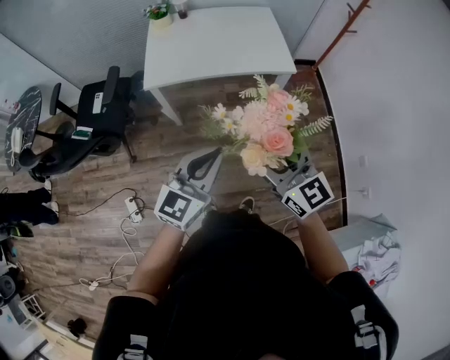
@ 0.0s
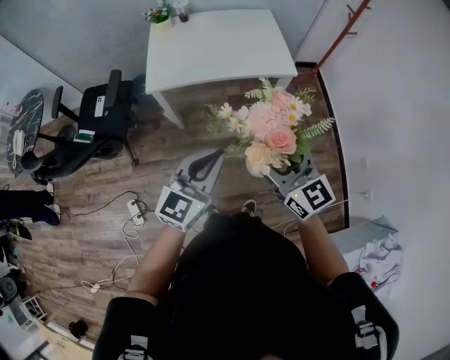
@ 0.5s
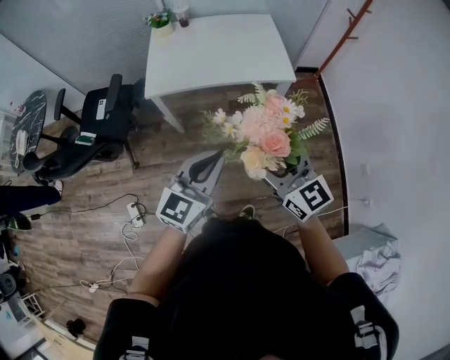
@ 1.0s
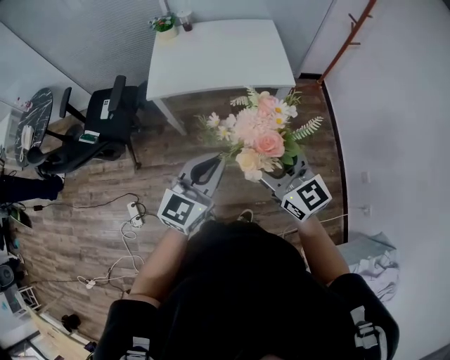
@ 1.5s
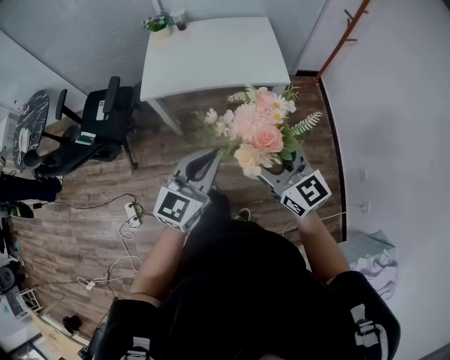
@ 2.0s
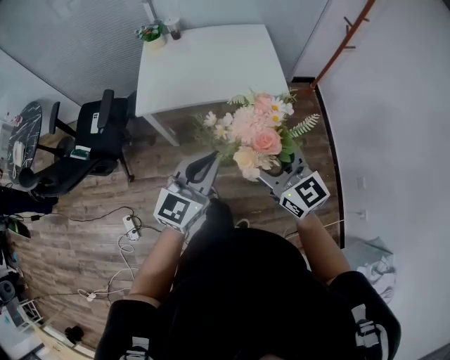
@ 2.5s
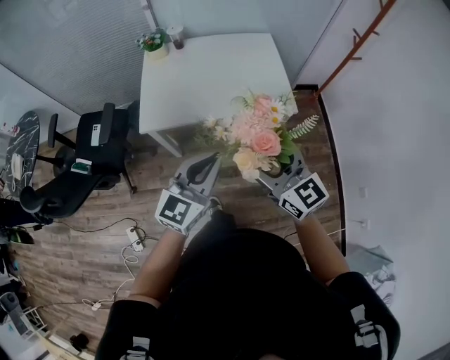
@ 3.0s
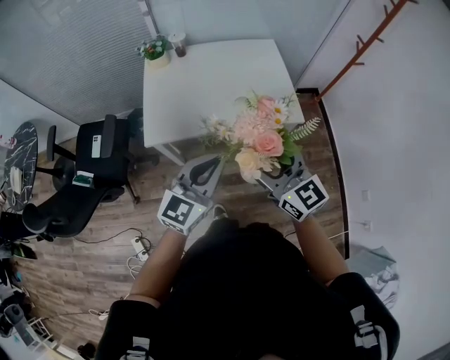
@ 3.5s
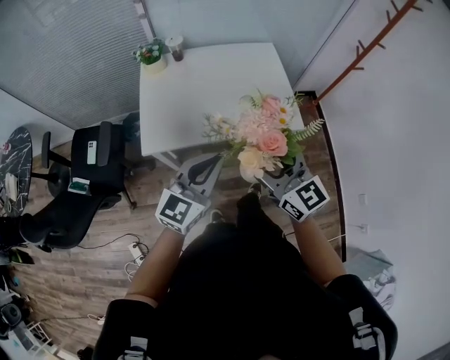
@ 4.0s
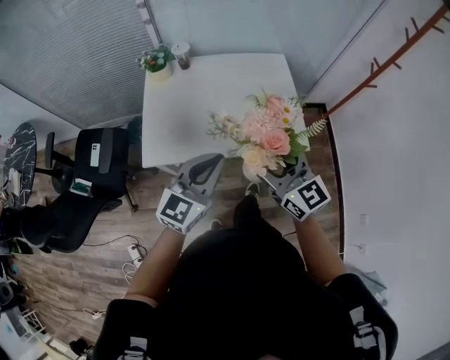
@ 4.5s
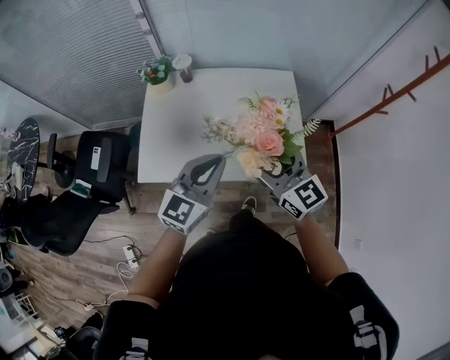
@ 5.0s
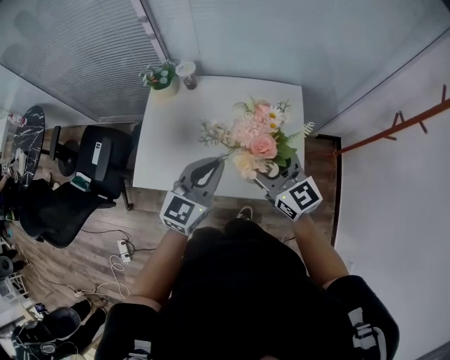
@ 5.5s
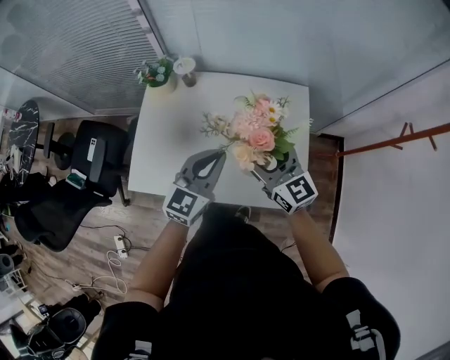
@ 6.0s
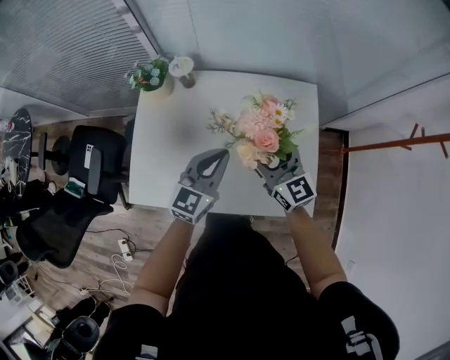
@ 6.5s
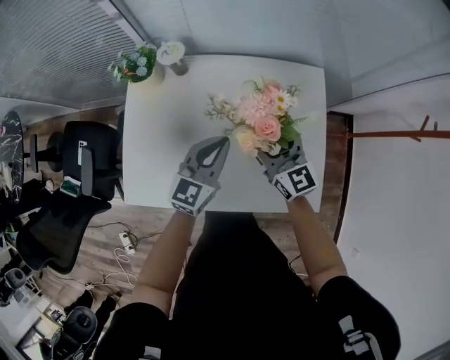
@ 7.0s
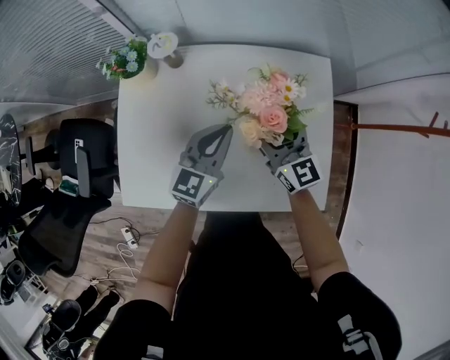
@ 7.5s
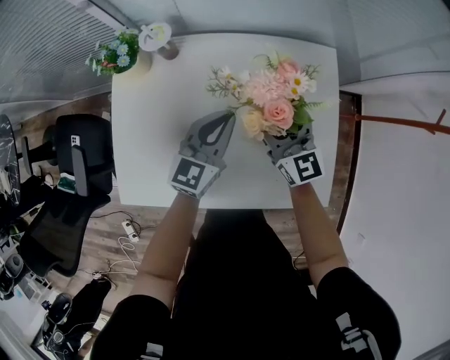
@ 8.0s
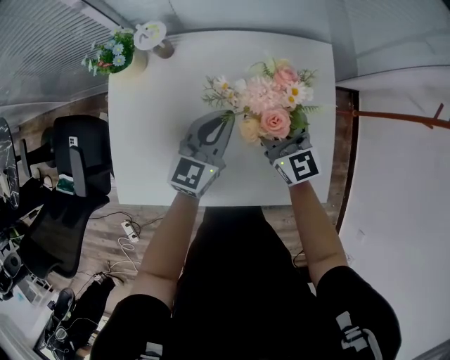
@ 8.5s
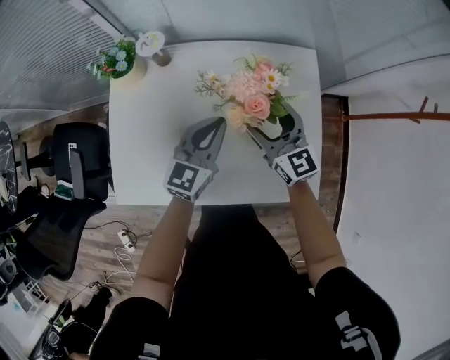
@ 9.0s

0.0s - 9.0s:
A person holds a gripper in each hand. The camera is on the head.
0.0s - 2.0s: Both grippers travel together to the right, roughly 5 cm.
2.0s - 4.5s: Both grippers travel together forward, approximately 35 cm.
4.5s - 7.0s: The grippers both shift forward and downward by approximately 40 cm.

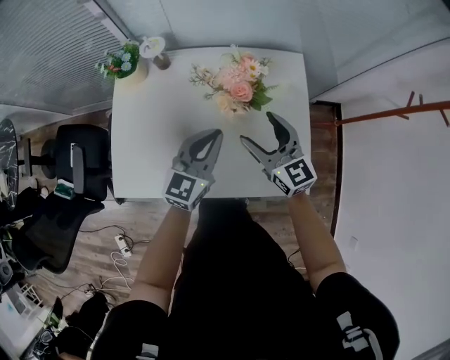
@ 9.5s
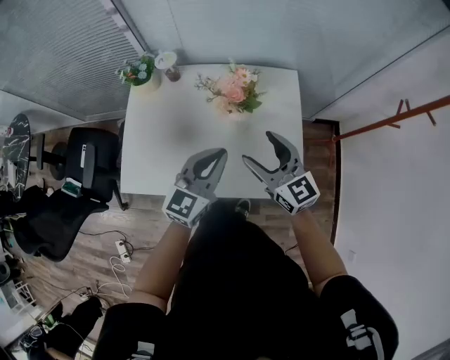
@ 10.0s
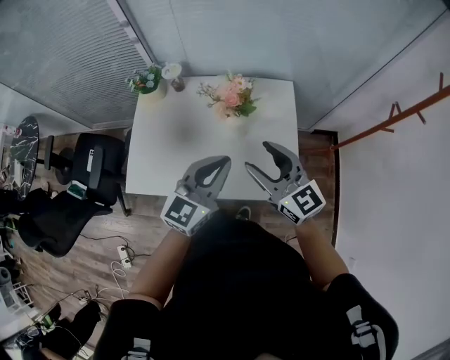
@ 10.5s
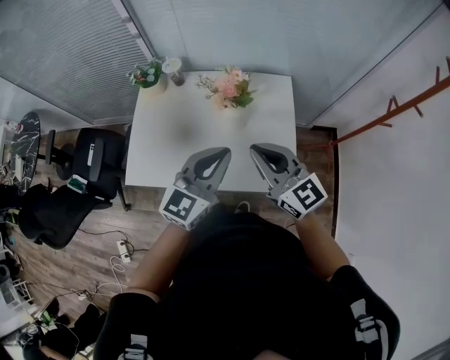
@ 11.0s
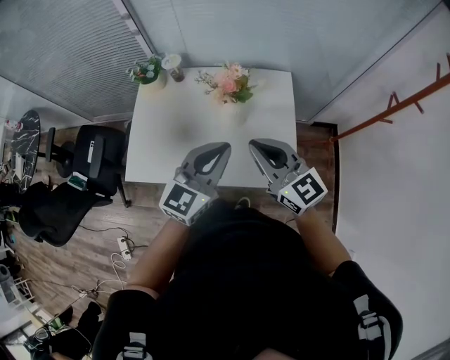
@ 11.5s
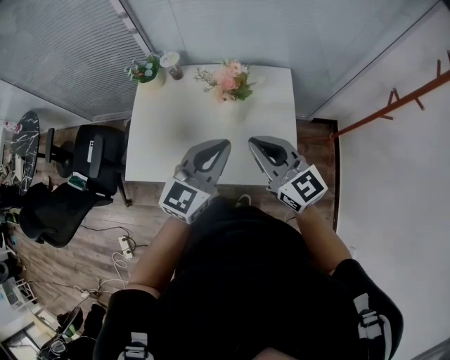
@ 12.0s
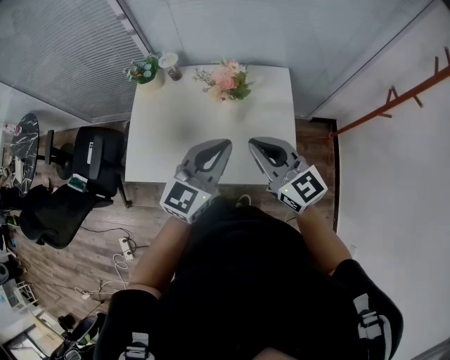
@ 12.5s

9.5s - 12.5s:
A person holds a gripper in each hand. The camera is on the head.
9.5s - 11.0s: Both grippers travel together upward and backward, roughly 20 cm. The right gripper closes up.
11.0s - 12.5s: Both grippers stay about where they are.

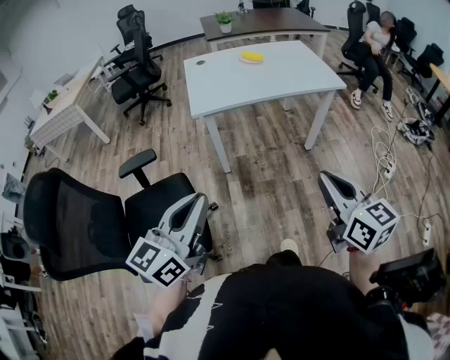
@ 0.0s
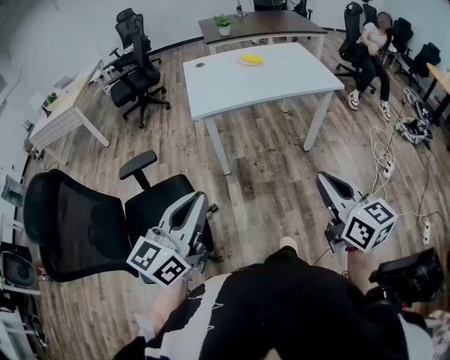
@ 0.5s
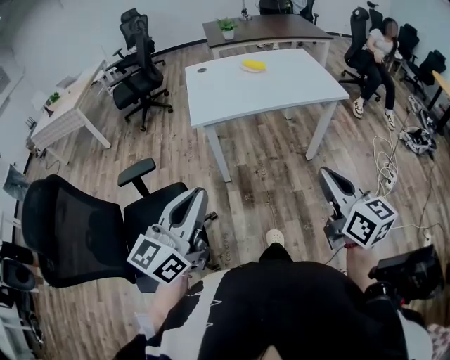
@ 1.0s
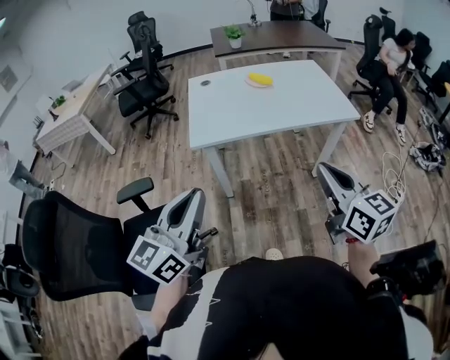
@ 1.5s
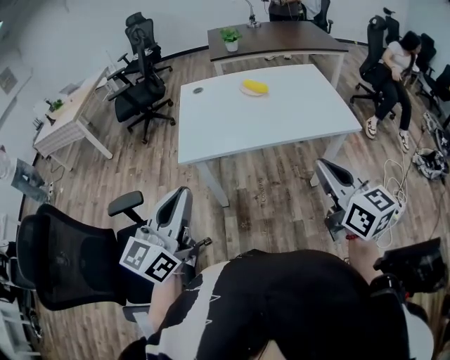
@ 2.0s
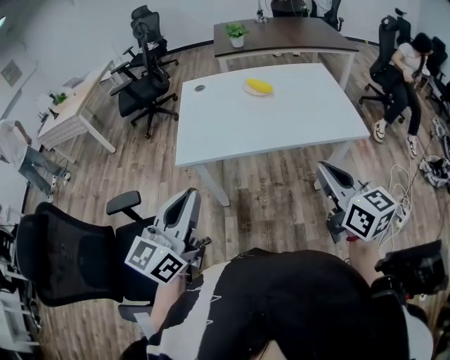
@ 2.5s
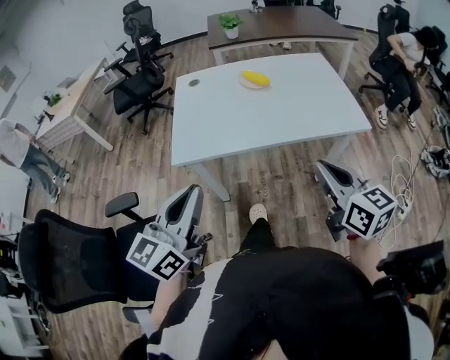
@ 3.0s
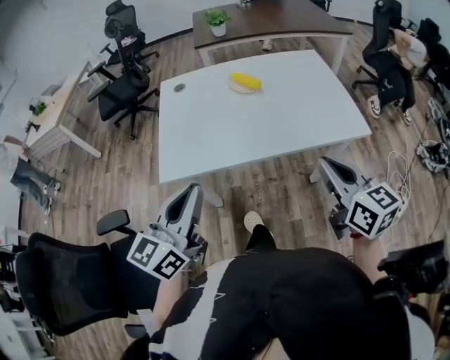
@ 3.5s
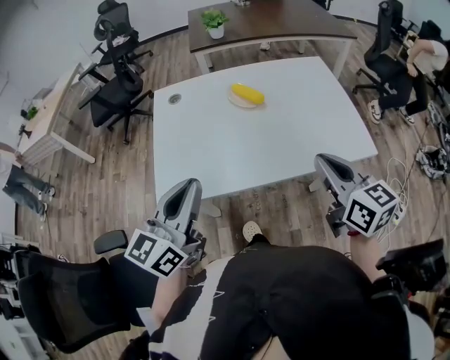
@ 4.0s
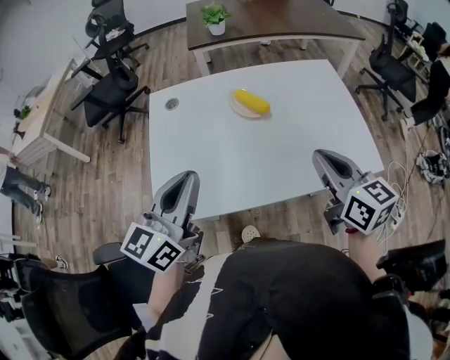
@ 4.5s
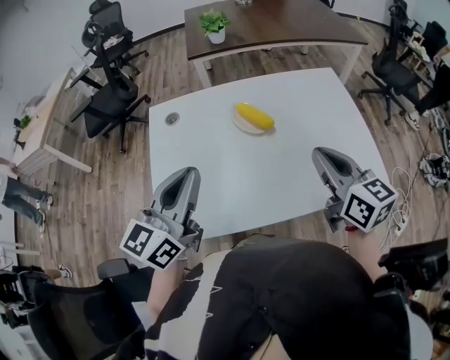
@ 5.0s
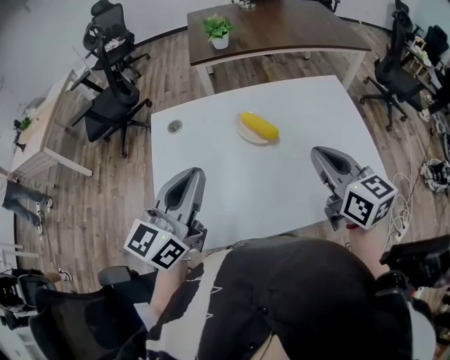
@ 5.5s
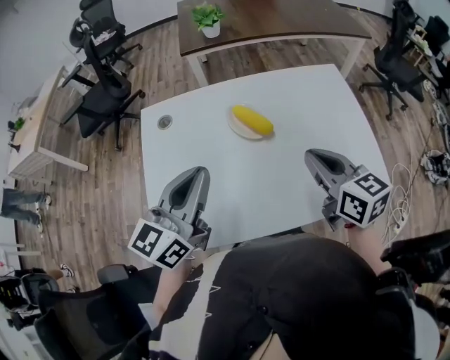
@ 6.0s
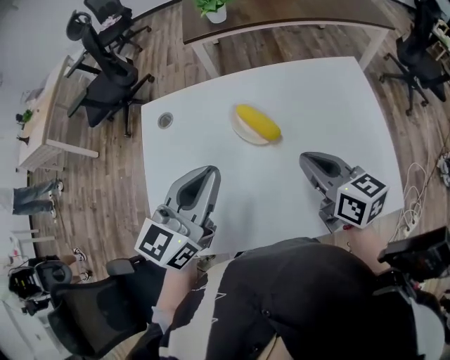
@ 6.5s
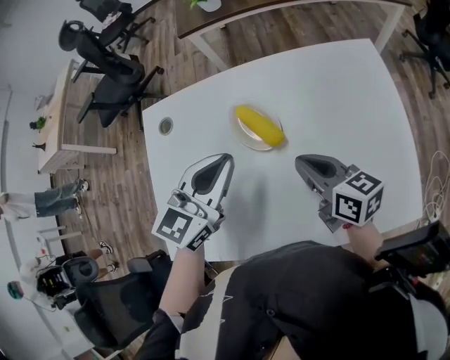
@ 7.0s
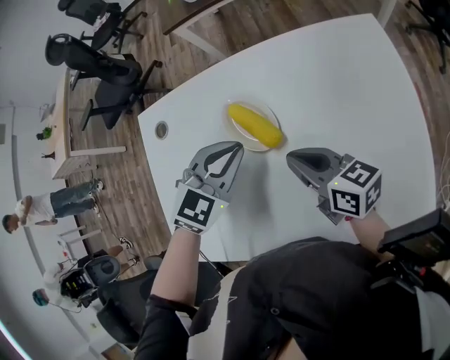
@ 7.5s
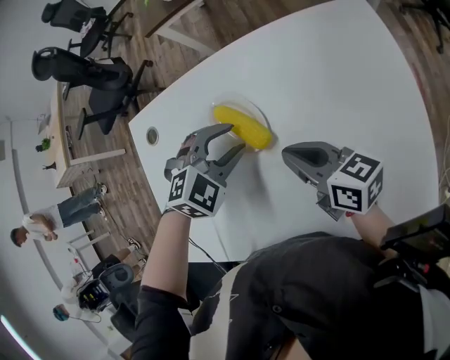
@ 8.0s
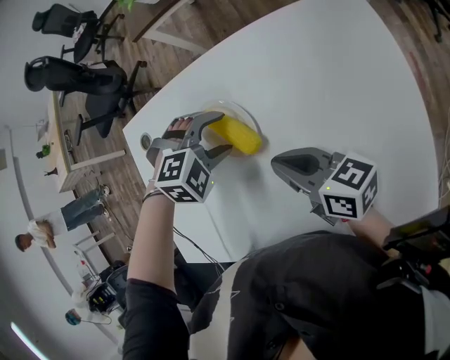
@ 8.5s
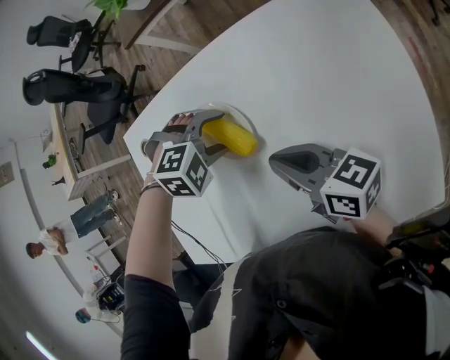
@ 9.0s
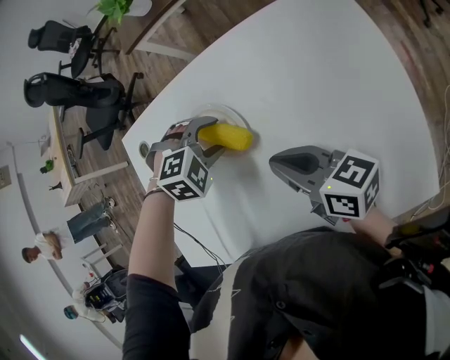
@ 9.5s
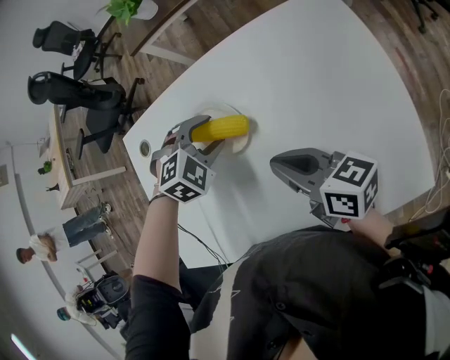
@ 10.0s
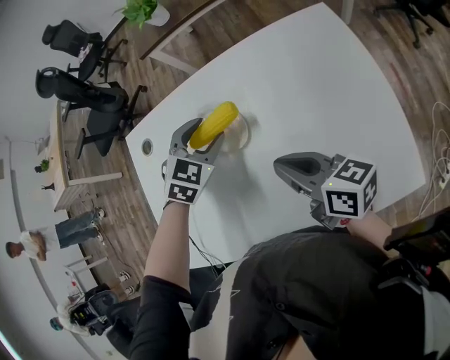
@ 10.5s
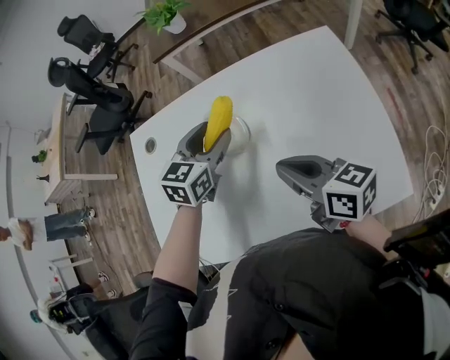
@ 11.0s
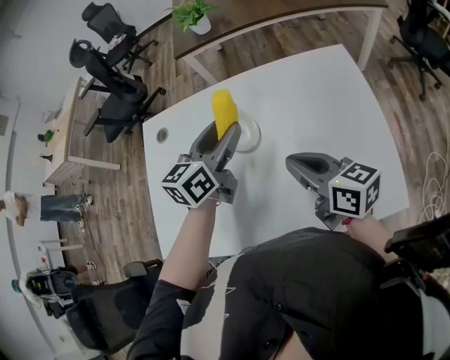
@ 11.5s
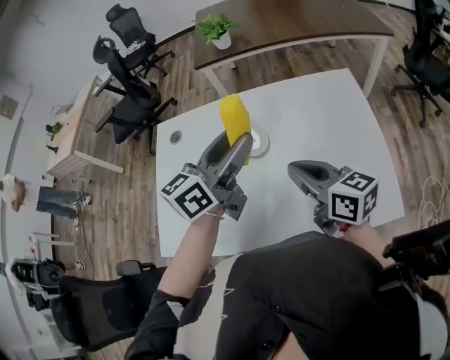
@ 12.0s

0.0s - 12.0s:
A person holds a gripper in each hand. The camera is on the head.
0.0s - 2.0s: Both grippers travel together forward, some 25 cm.
2.0s - 4.0s: Both grippers move forward, roughly 25 cm.
4.0s - 6.0s: The grippers both shift forward by approximately 20 cm.
6.0s - 8.0s: The right gripper is displaced downward and forward by approximately 20 cm, and changes its angle by roughly 30 degrees. Meanwhile the left gripper travels downward, forward and to the right by roughly 35 cm, tilts its fingers about 60 degrees downward, and opens.
10.0s - 12.0s: The left gripper is displaced upward and backward by about 25 cm, and tips its fingers upward by approximately 70 degrees, while the right gripper is displaced upward and backward by some 10 cm.

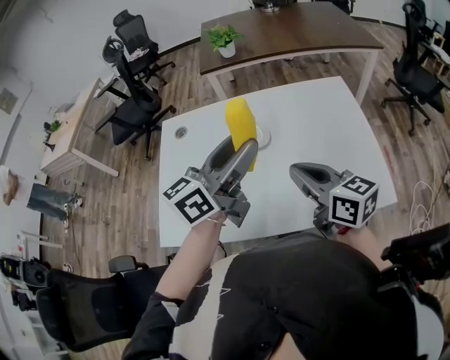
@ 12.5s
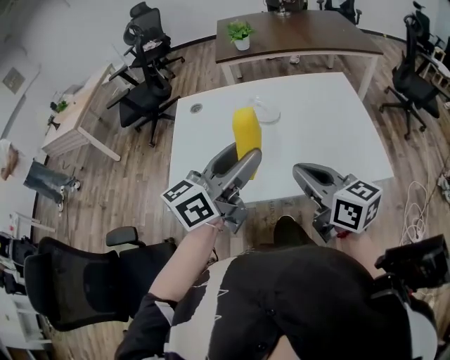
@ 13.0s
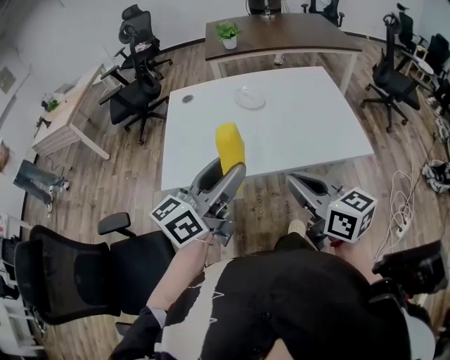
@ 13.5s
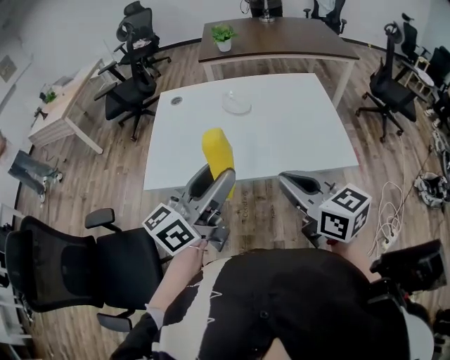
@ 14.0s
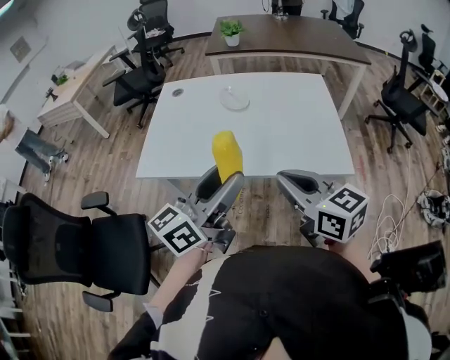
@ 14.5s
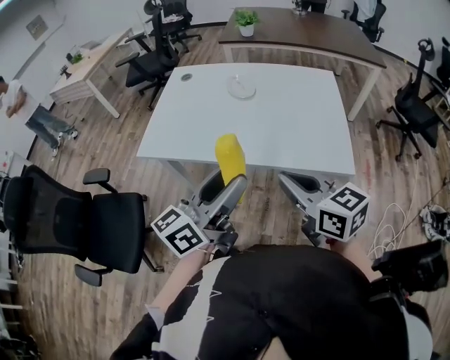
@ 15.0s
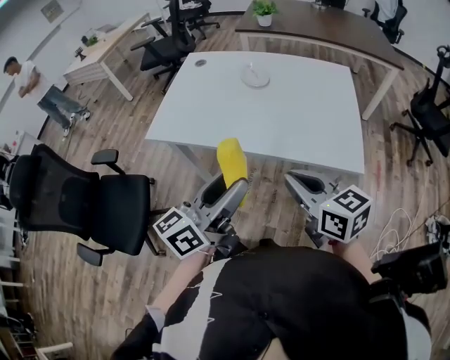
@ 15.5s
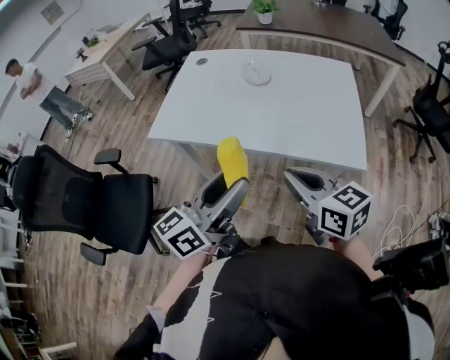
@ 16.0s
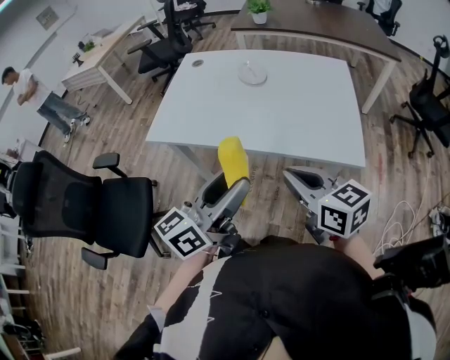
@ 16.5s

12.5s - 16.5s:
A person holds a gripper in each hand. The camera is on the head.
12.5s - 14.5s: Both grippers travel together backward, roughly 30 cm.
14.5s - 16.5s: The left gripper goes approximately 5 cm backward. Meanwhile the right gripper moves downward, about 5 cm.
